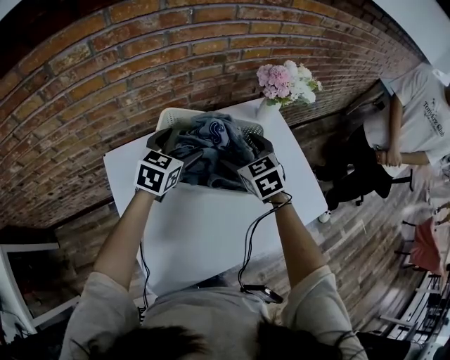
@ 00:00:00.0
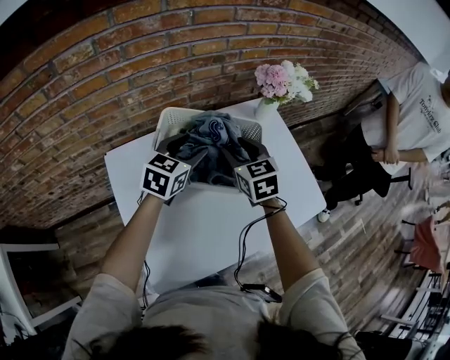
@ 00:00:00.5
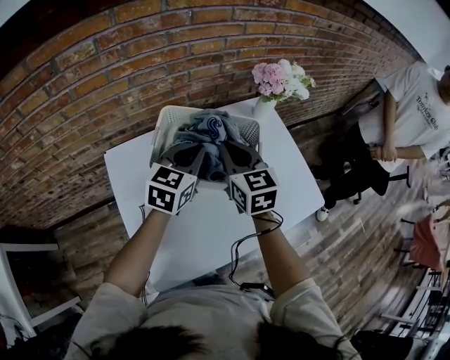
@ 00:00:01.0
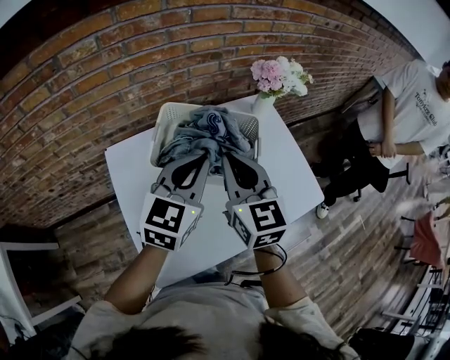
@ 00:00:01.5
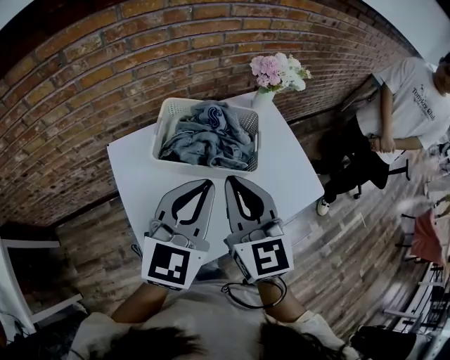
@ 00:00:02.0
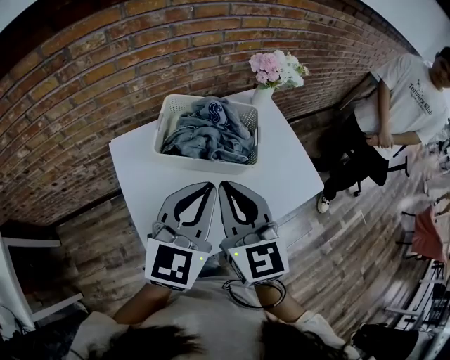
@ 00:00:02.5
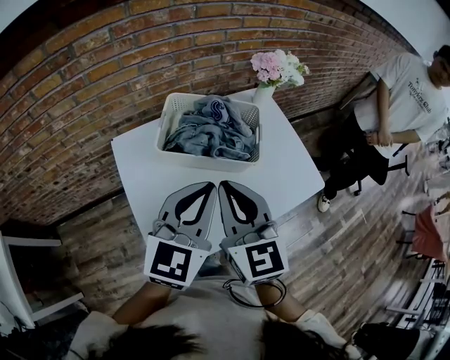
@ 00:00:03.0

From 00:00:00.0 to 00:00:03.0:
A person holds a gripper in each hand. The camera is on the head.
From 00:00:00.0 to 00:00:01.5: The left gripper moves backward, upward and to the right, some 20 cm, and closes. The right gripper goes roughly 20 cm upward and backward, turns by roughly 30 degrees, and closes.
From 00:00:01.5 to 00:00:03.0: The grippers both shift backward by some 15 cm.

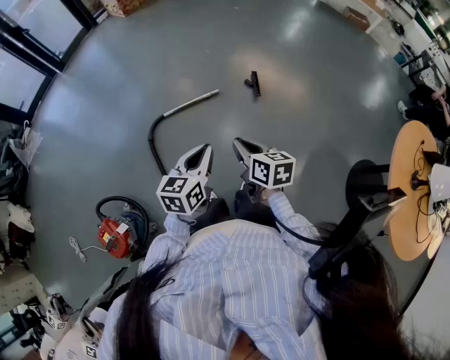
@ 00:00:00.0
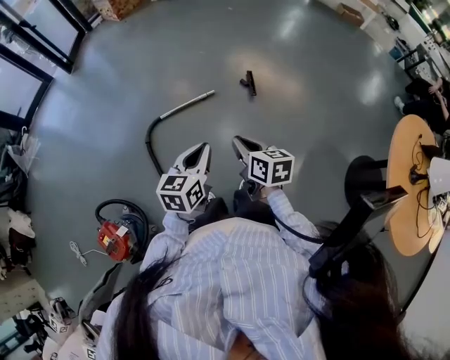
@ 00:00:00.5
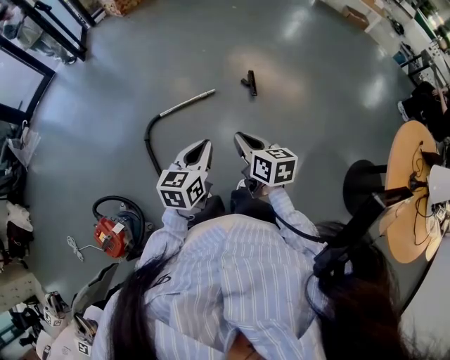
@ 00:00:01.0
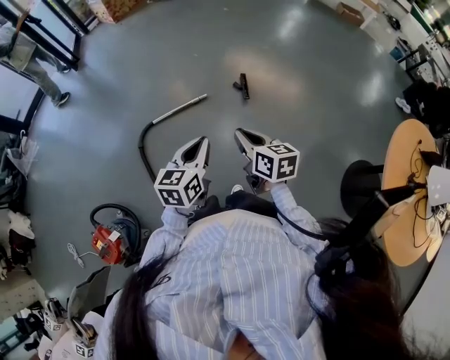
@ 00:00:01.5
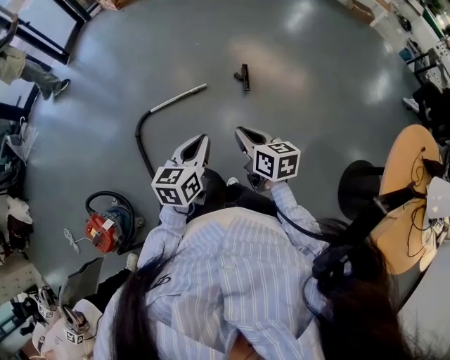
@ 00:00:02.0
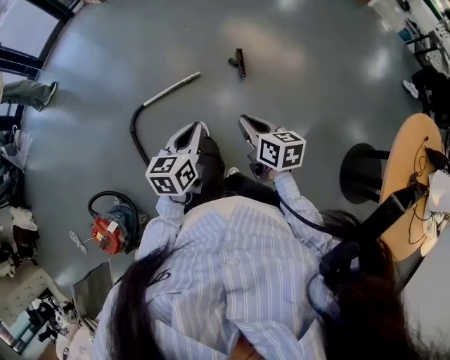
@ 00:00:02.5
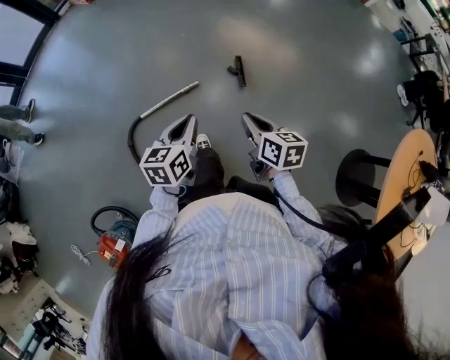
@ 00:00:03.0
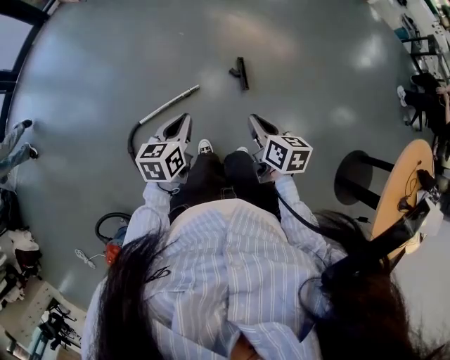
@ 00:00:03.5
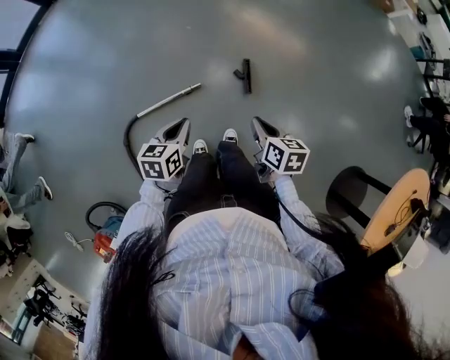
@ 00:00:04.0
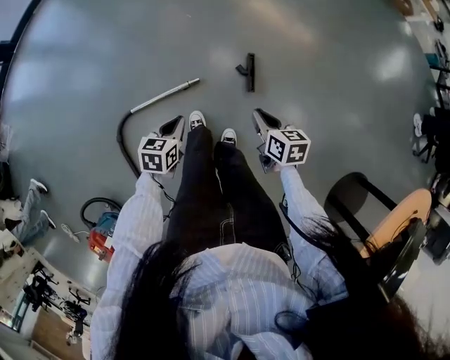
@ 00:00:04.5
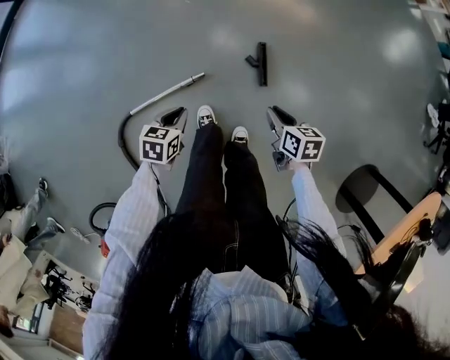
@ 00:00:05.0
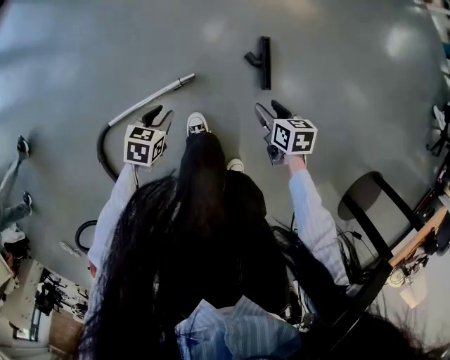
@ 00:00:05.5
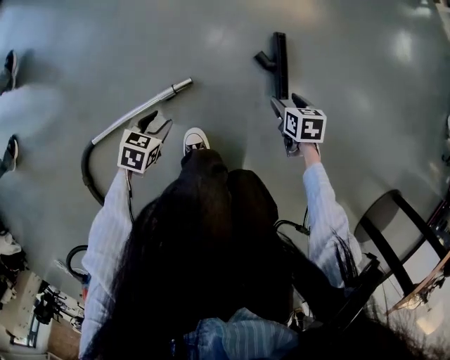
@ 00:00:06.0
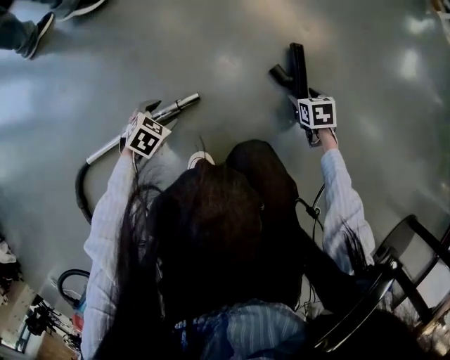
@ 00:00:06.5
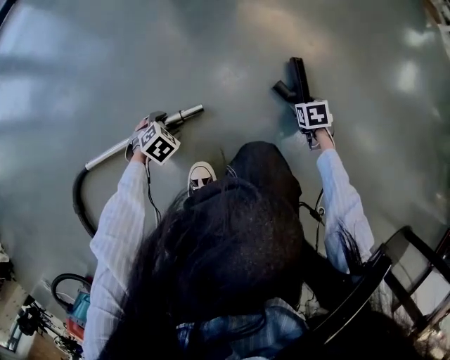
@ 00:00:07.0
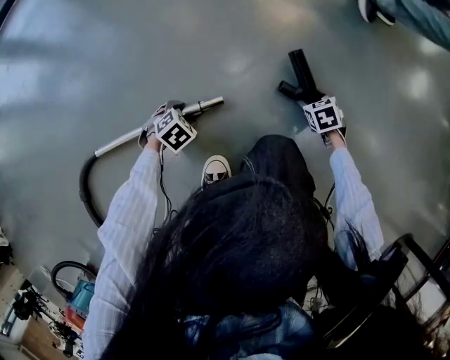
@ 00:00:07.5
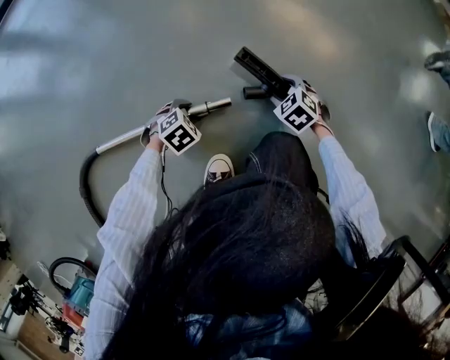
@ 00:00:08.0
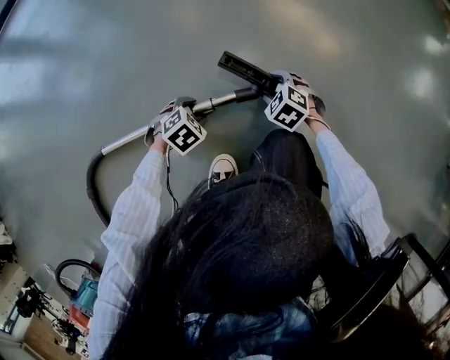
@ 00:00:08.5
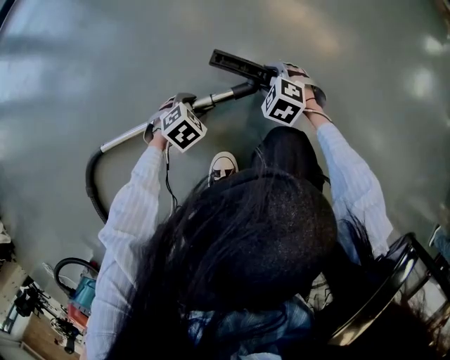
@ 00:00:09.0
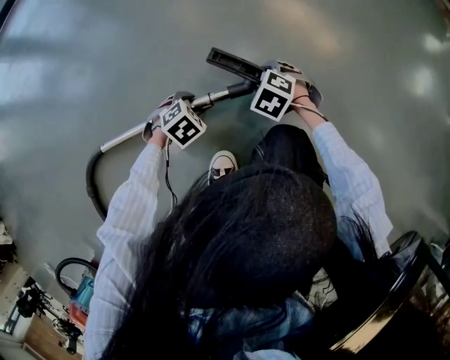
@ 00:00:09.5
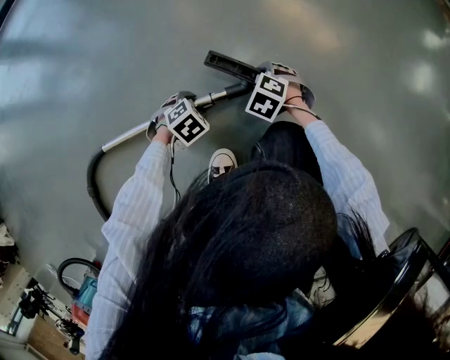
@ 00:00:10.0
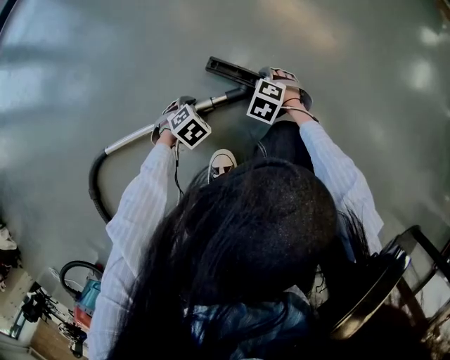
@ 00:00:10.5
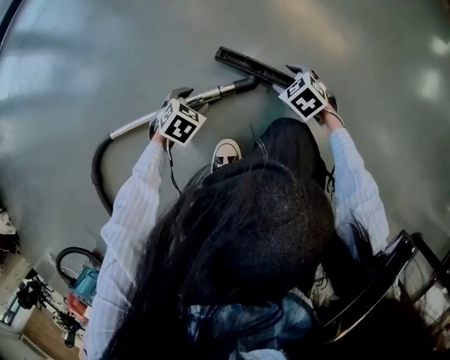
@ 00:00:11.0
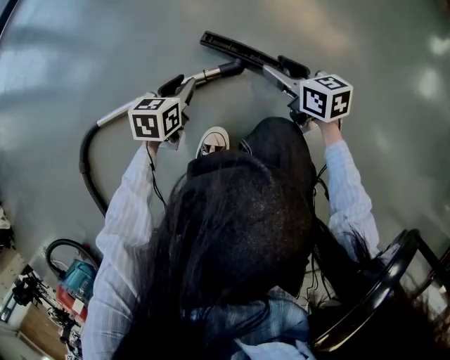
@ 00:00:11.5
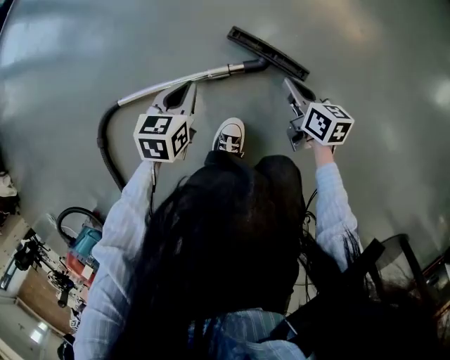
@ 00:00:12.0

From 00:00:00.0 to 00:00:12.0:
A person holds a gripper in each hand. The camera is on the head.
From 00:00:00.0 to 00:00:02.0: The two grippers go roughly 15 cm to the right.
From 00:00:02.0 to 00:00:04.0: The two grippers go roughly 35 cm forward.
From 00:00:04.0 to 00:00:06.0: Both grippers move downward, roughly 60 cm. The right gripper changes its angle by some 30 degrees, and opens its fingers; the left gripper swivels about 30 degrees, and opens up.
From 00:00:06.0 to 00:00:08.0: The left gripper moves downward, about 20 cm, and turns by approximately 30 degrees; the right gripper goes about 25 cm to the left and downward, and rotates around the line of its fingers by some 60 degrees, counterclockwise from behind.
From 00:00:08.0 to 00:00:10.0: The right gripper moves some 5 cm.
From 00:00:10.0 to 00:00:12.0: The right gripper moves upward, roughly 15 cm, twists about 70 degrees clockwise, seen from behind, and closes up, while the left gripper heads upward, covering some 20 cm, swivels about 60 degrees, and closes.

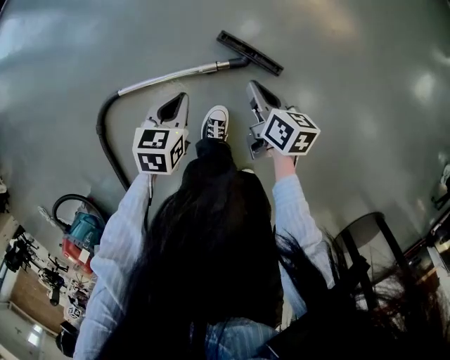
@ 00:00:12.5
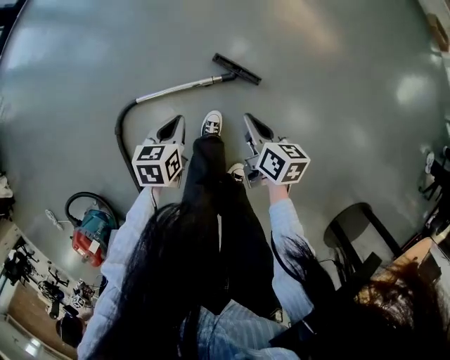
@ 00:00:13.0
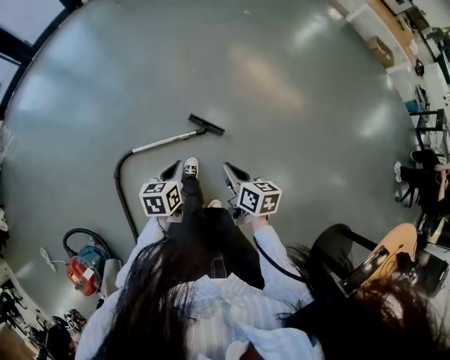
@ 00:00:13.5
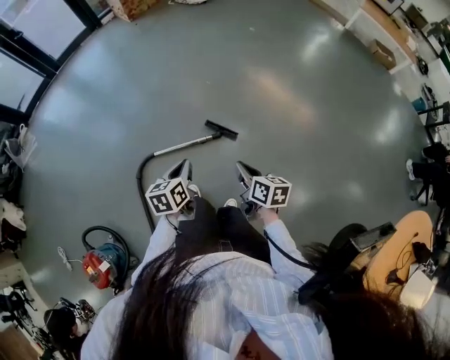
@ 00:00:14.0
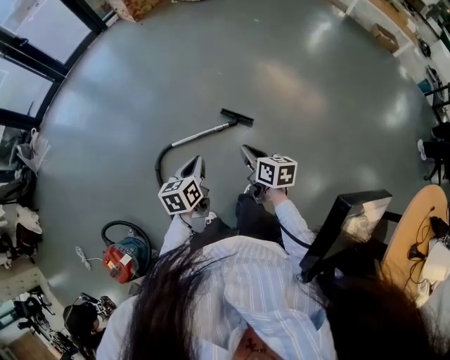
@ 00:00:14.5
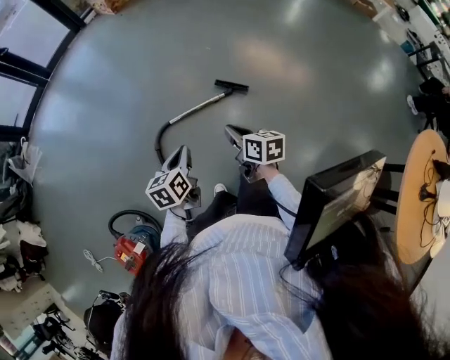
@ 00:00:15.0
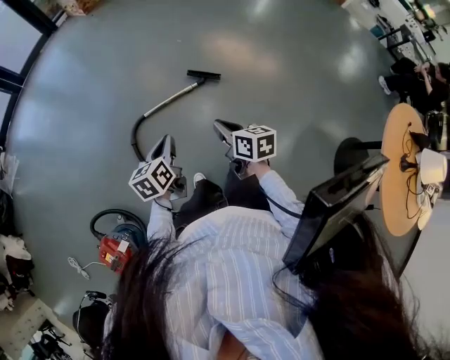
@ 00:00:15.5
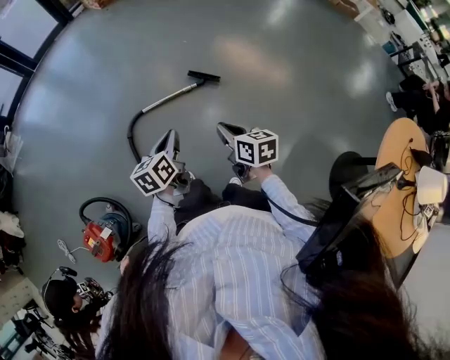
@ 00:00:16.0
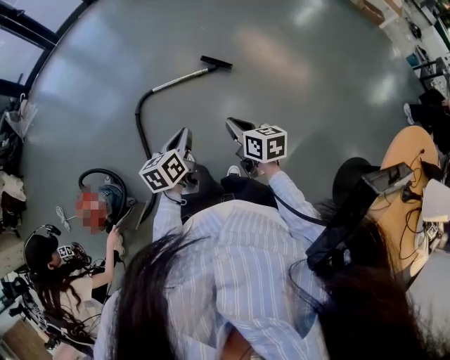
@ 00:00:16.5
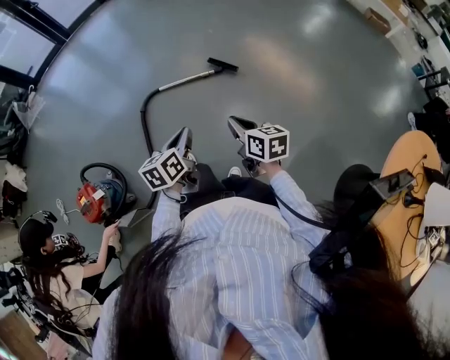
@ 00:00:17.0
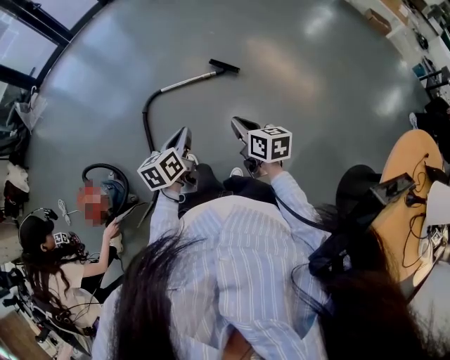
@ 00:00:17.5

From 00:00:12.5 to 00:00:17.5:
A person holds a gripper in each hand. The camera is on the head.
From 00:00:12.5 to 00:00:15.0: Both grippers are carried backward and to the left, approximately 40 cm. Both grippers travel together upward, roughly 60 cm. The left gripper changes its angle by roughly 20 degrees.
From 00:00:15.0 to 00:00:17.5: The grippers both shift backward and to the right by some 30 cm.

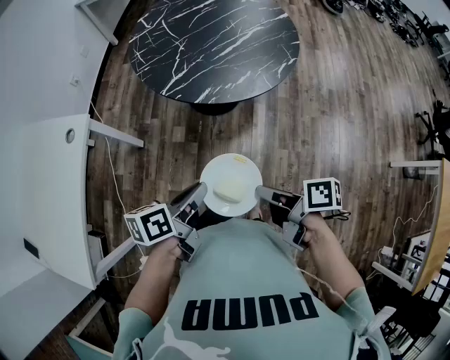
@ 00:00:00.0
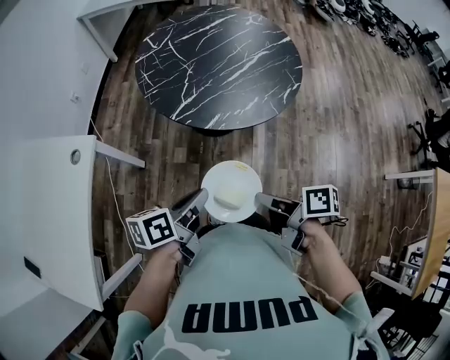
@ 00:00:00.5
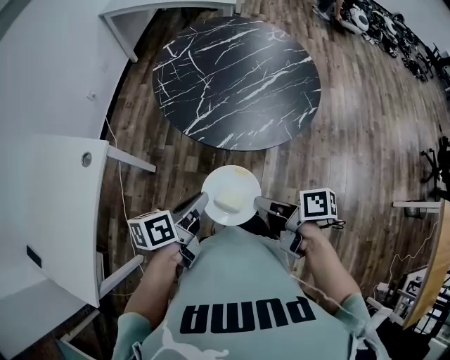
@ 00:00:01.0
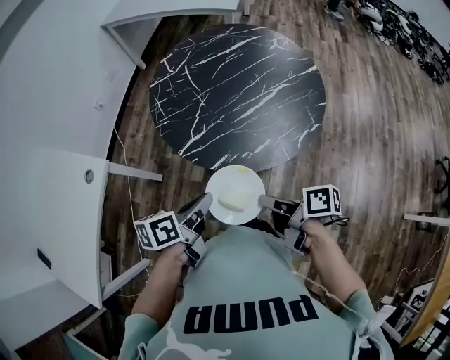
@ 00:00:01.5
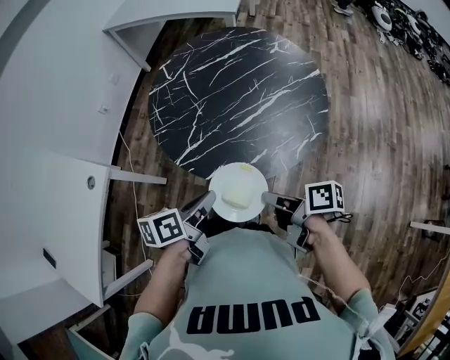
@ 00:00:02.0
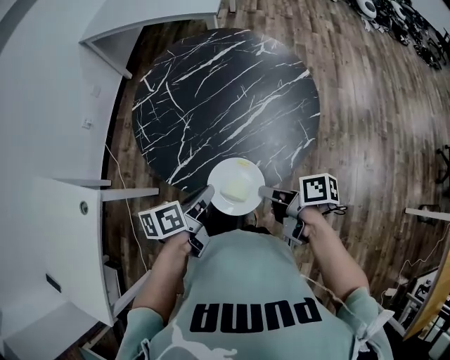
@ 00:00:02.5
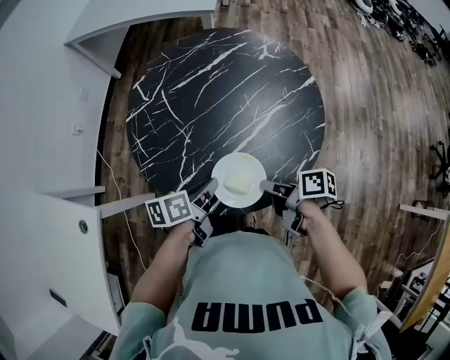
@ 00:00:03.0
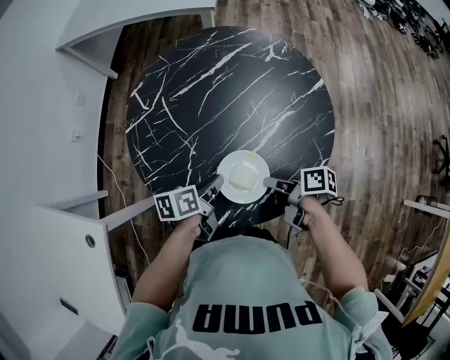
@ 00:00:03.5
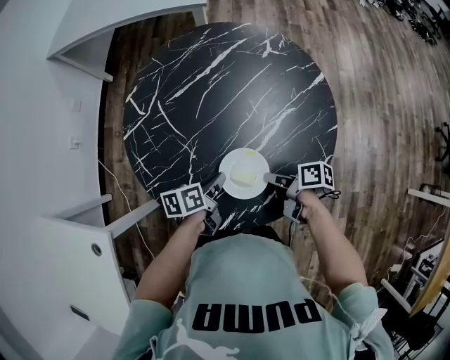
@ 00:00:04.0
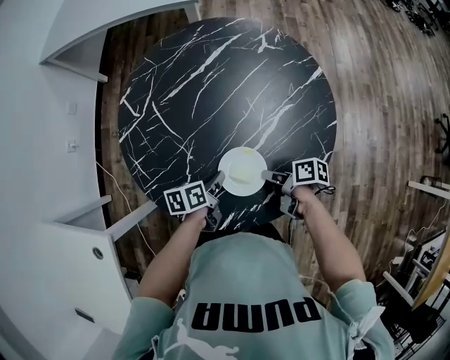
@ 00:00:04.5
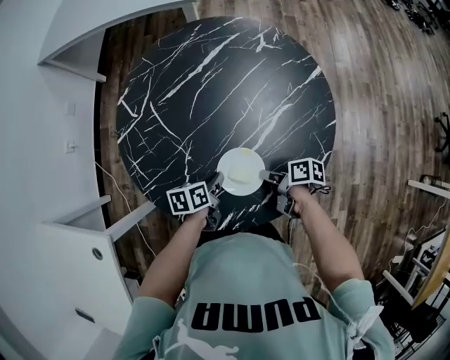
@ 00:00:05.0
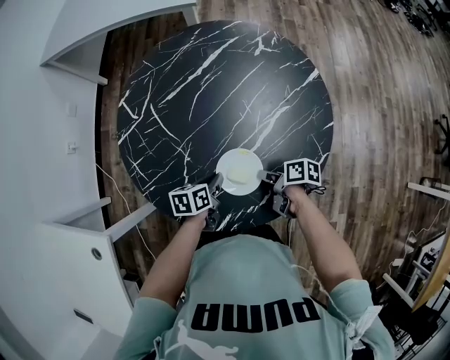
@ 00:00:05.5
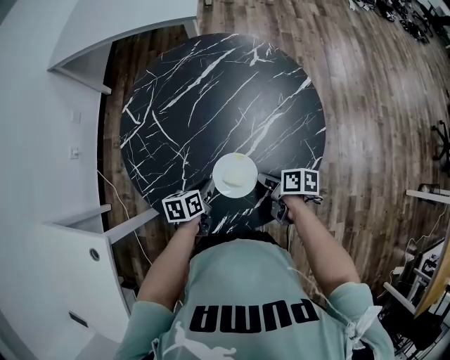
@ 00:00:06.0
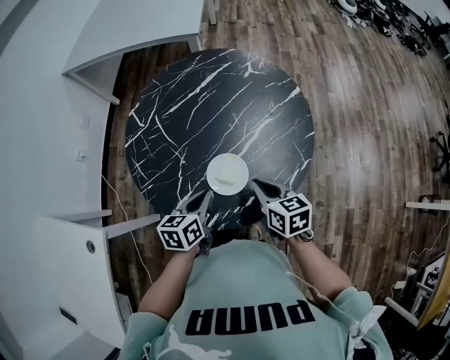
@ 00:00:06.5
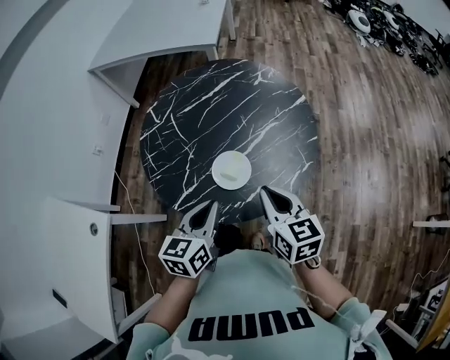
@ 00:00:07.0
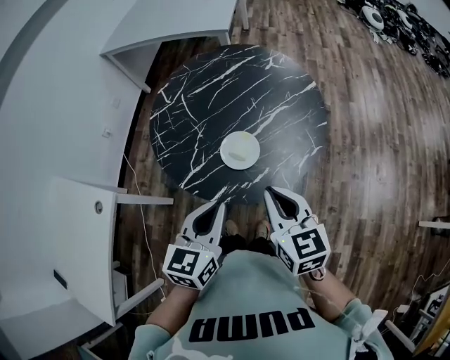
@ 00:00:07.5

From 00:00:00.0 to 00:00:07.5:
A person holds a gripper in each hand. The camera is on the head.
From 00:00:00.0 to 00:00:02.0: Both grippers move forward, approximately 25 cm.
From 00:00:02.0 to 00:00:04.0: The grippers both shift forward and downward by about 30 cm.
From 00:00:04.0 to 00:00:05.5: Both grippers travel together downward, some 5 cm.
From 00:00:05.5 to 00:00:07.5: The two grippers go roughly 35 cm upward and backward. The left gripper rotates about 50 degrees; the right gripper rotates around the line of its fingers by about 60 degrees, counterclockwise from behind.
